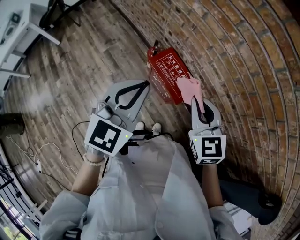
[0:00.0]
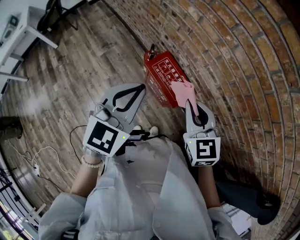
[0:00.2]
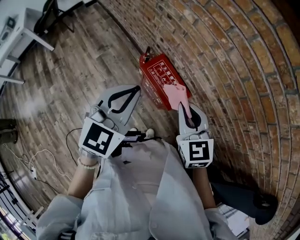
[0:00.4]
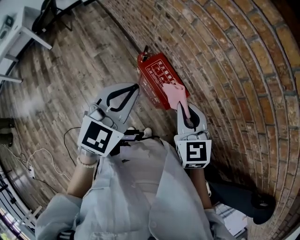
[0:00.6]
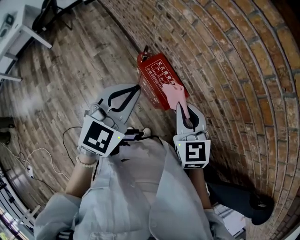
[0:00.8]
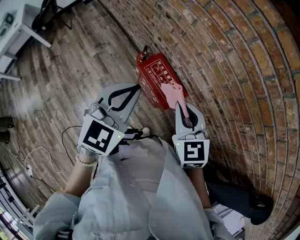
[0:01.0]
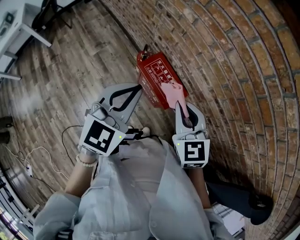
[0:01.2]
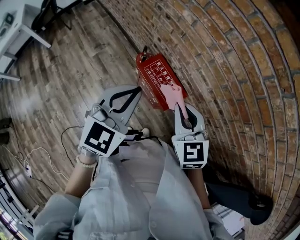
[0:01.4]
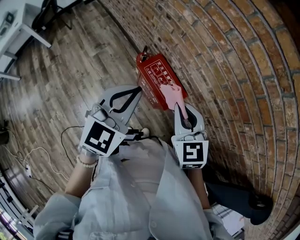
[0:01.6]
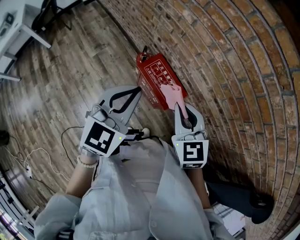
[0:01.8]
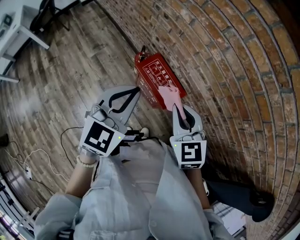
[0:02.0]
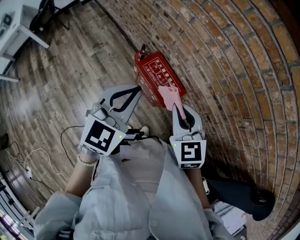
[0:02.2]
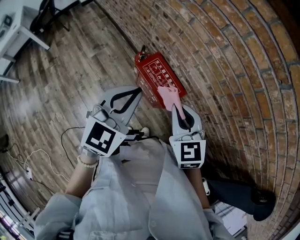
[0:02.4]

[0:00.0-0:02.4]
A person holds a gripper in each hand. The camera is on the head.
0:00.0 to 0:02.4: The grippers stay close to where they were, moving slightly.

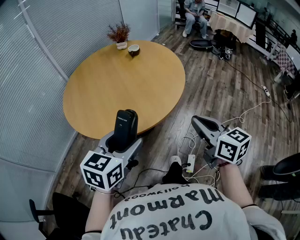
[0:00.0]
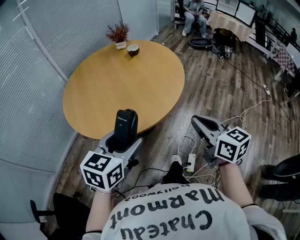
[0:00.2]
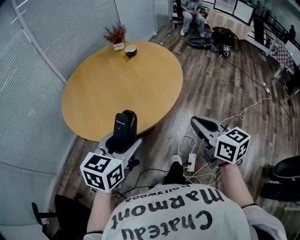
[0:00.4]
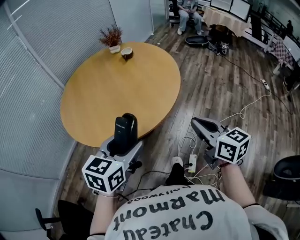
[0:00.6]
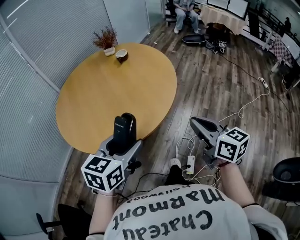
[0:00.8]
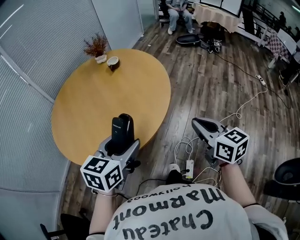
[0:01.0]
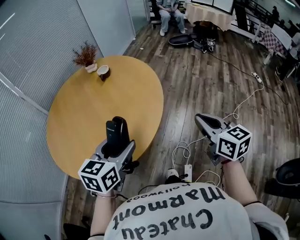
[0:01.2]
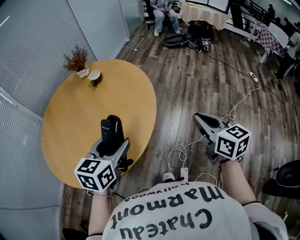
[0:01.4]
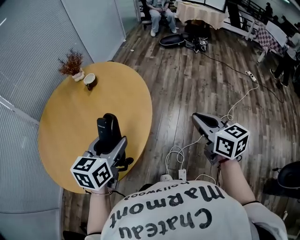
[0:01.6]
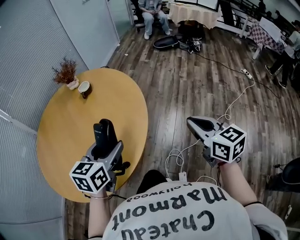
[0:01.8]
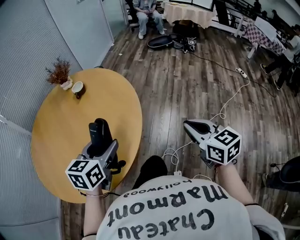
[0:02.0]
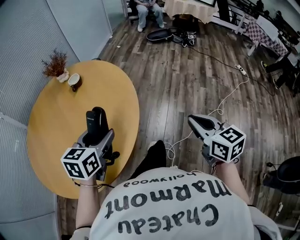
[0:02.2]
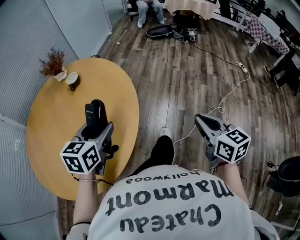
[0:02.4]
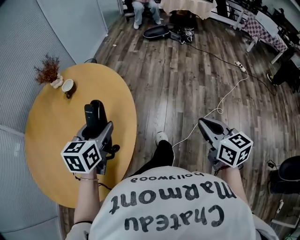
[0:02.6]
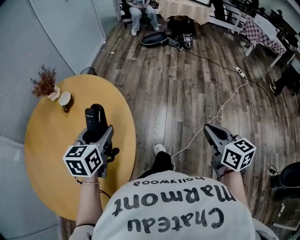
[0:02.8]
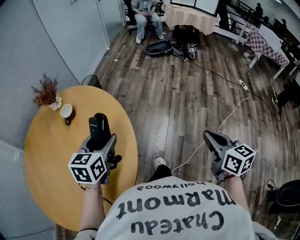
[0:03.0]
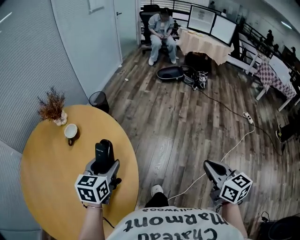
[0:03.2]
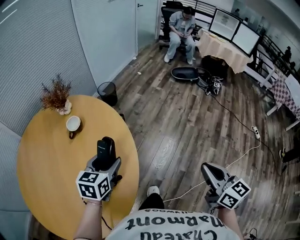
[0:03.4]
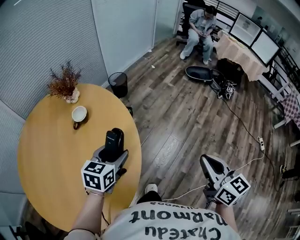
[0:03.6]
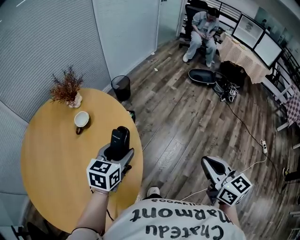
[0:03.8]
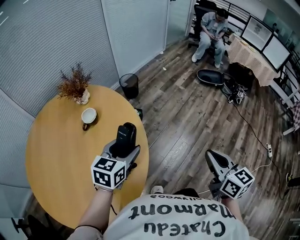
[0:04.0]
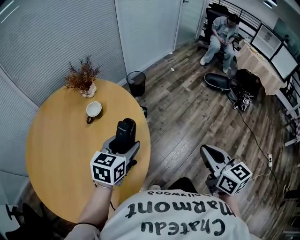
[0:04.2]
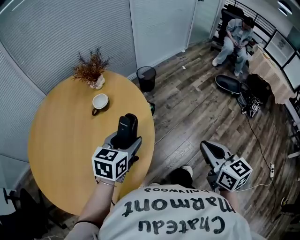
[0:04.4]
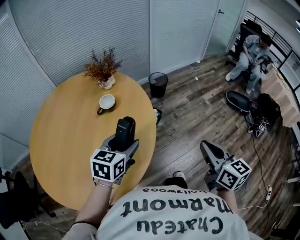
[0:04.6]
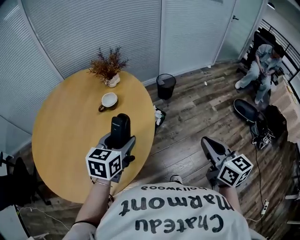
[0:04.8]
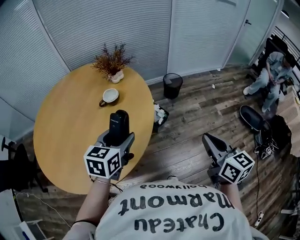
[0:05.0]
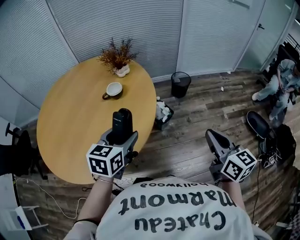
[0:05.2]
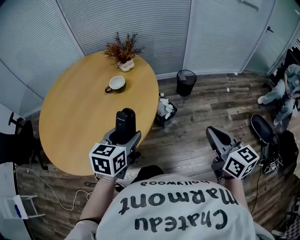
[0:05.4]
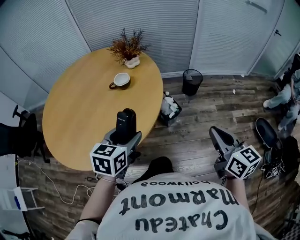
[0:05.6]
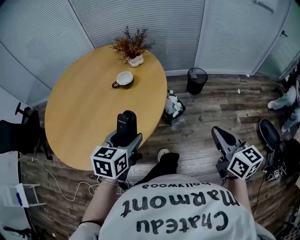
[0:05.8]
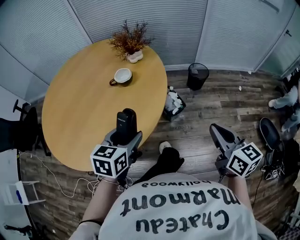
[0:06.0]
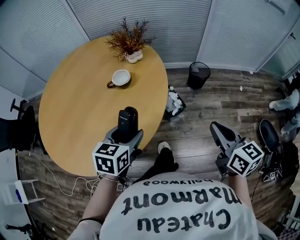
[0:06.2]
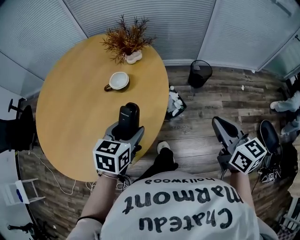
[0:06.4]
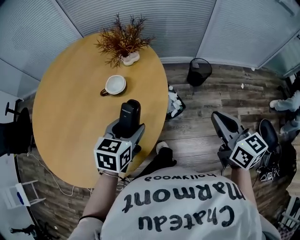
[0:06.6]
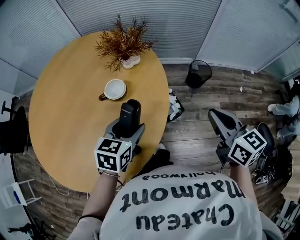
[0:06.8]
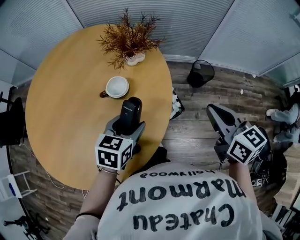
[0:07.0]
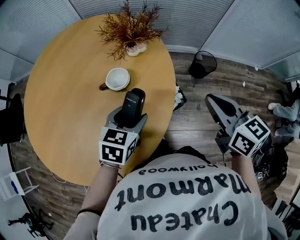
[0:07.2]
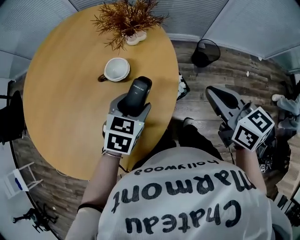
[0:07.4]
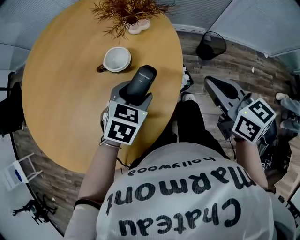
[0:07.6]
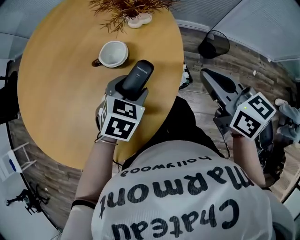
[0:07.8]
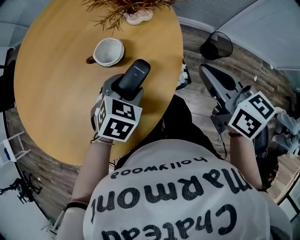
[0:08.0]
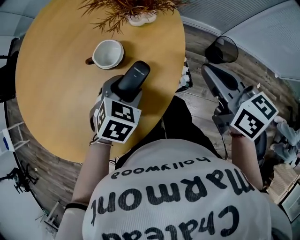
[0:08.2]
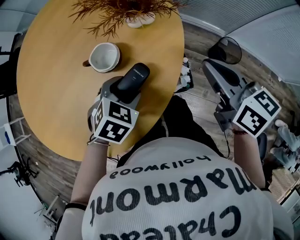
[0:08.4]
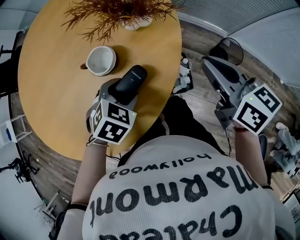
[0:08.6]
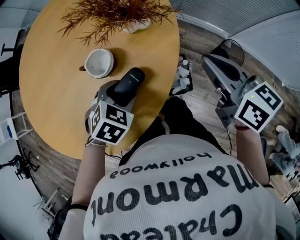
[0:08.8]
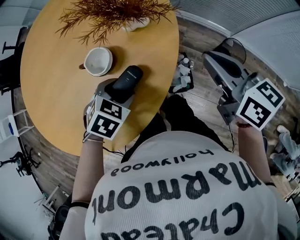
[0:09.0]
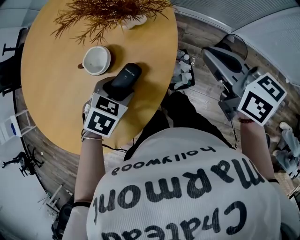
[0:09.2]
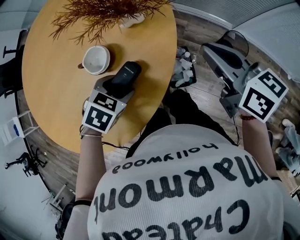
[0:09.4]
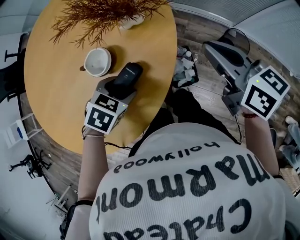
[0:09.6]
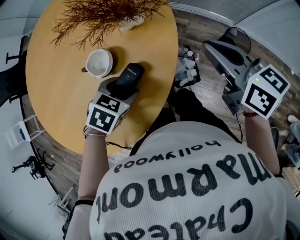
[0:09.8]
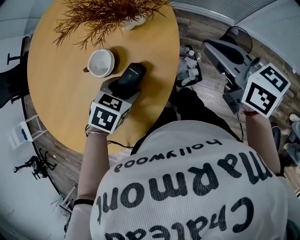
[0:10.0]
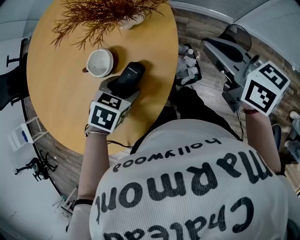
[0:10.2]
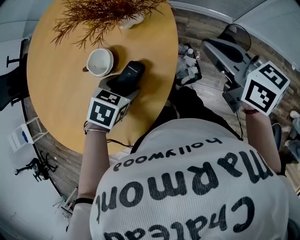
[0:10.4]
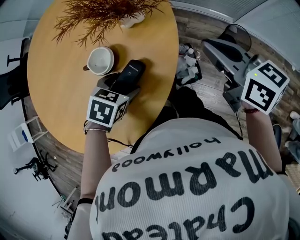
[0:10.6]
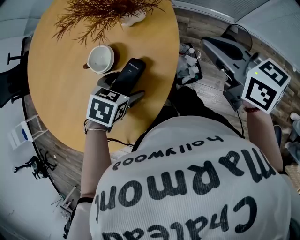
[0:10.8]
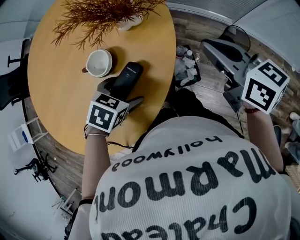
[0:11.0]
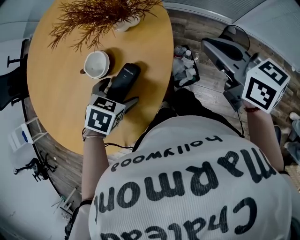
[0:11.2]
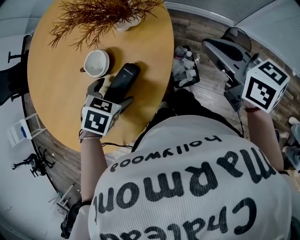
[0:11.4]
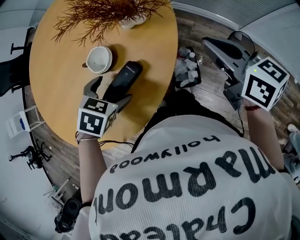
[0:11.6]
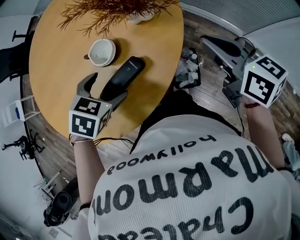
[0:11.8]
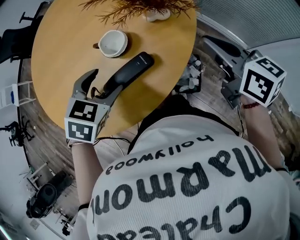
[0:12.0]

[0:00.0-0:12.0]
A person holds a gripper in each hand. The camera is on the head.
0:00.0 to 0:01.6: Both grippers move forward and to the right, approximately 30 cm.
0:01.6 to 0:03.0: The left gripper travels forward by about 25 cm. The right gripper moves forward and to the right, approximately 20 cm.
0:03.0 to 0:04.4: The right gripper shifts by some 30 cm, and changes its angle by some 40 degrees. The left gripper moves about 15 cm, and changes its angle by approximately 30 degrees.
0:04.4 to 0:06.0: The right gripper shifts by roughly 25 cm, and swivels roughly 40 degrees. The left gripper changes its angle by about 40 degrees.
0:06.0 to 0:07.6: The left gripper travels forward and downward by roughly 20 cm, and swivels some 20 degrees, while the right gripper travels forward by some 25 cm.
0:07.6 to 0:09.0: The right gripper travels forward and to the right by some 15 cm. Meanwhile the left gripper heads downward, covering about 5 cm, and changes its angle by approximately 20 degrees.
0:09.0 to 0:10.4: The grippers move only a little.
0:10.4 to 0:12.0: The right gripper changes place by approximately 5 cm; the left gripper shifts some 10 cm upward, and changes its angle by approximately 30 degrees.

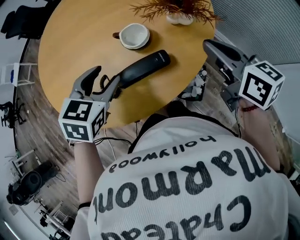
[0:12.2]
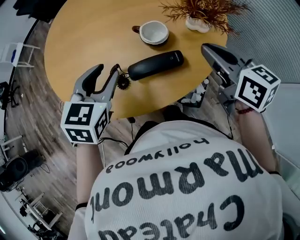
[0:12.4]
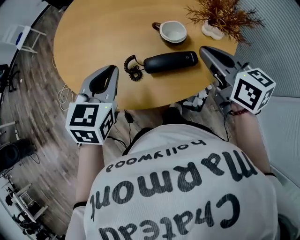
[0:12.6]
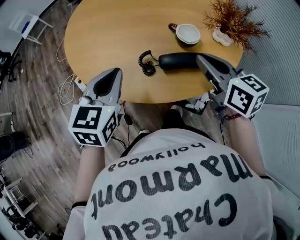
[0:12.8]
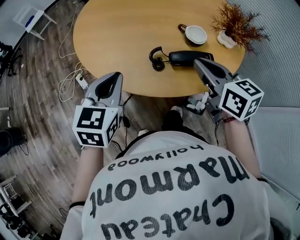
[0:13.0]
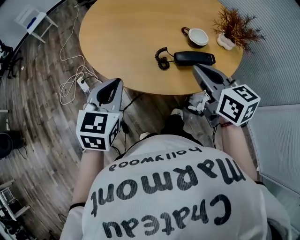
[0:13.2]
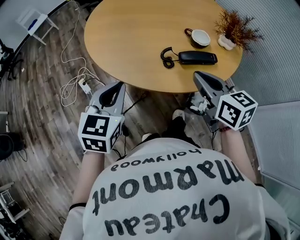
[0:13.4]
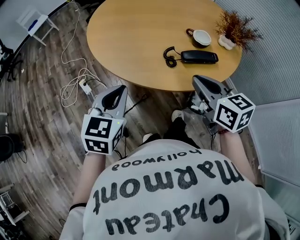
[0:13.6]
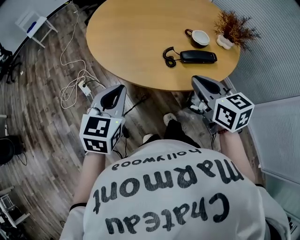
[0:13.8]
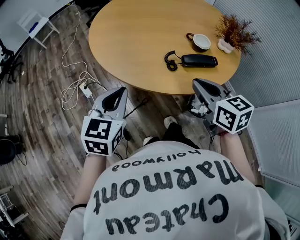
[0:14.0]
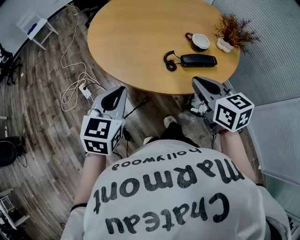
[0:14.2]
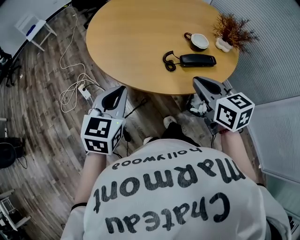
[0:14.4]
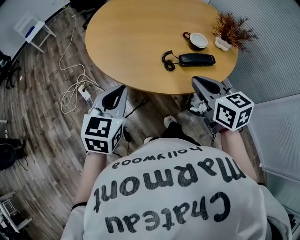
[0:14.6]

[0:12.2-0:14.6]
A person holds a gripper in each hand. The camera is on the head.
0:12.2 to 0:13.4: The right gripper travels to the left by some 30 cm. The left gripper travels to the left and backward by roughly 30 cm, turns by roughly 30 degrees, and closes up.
0:13.4 to 0:14.6: There are only small adjustments of the grippers.

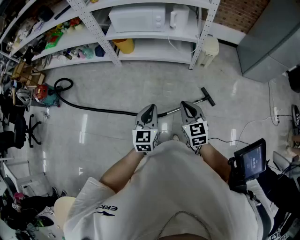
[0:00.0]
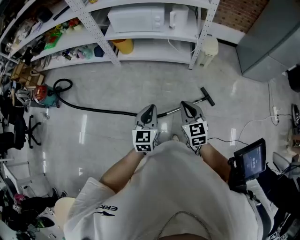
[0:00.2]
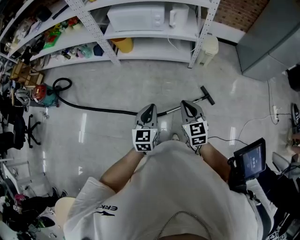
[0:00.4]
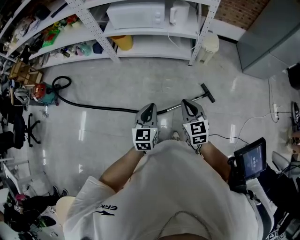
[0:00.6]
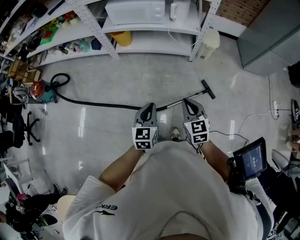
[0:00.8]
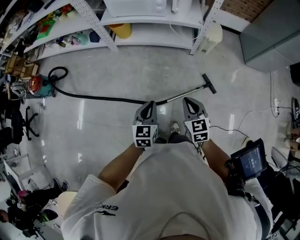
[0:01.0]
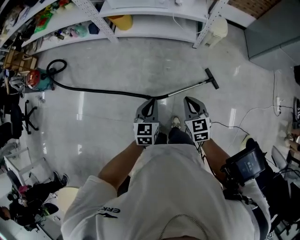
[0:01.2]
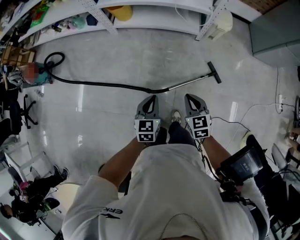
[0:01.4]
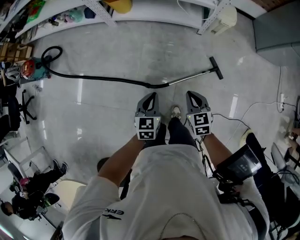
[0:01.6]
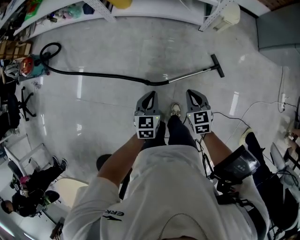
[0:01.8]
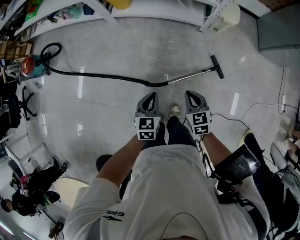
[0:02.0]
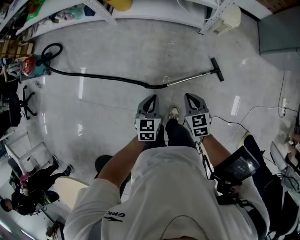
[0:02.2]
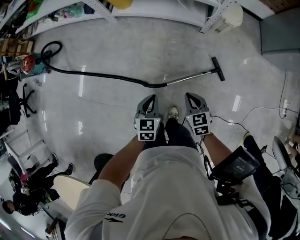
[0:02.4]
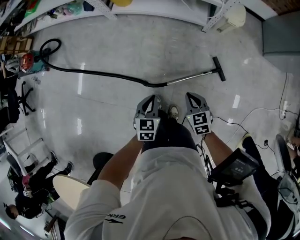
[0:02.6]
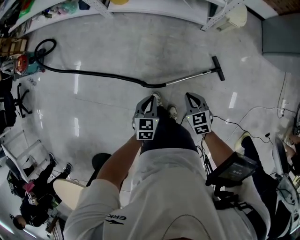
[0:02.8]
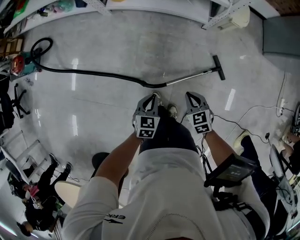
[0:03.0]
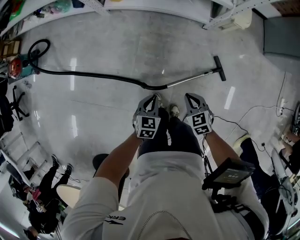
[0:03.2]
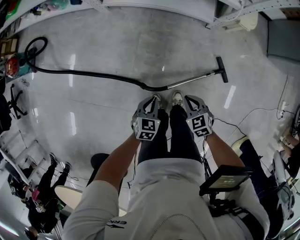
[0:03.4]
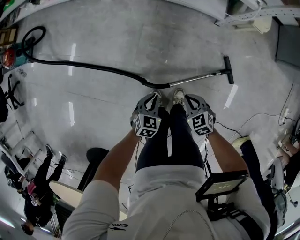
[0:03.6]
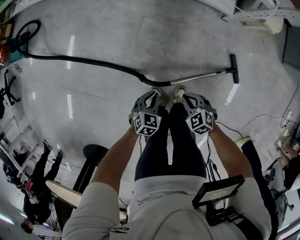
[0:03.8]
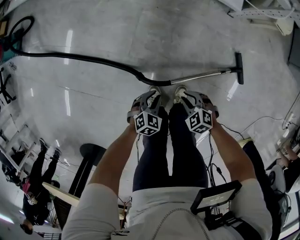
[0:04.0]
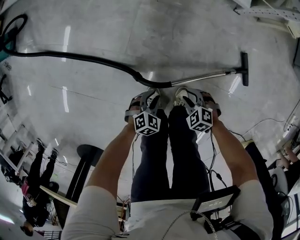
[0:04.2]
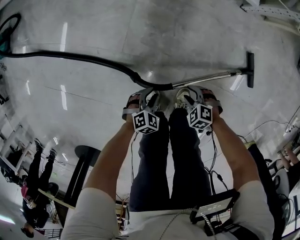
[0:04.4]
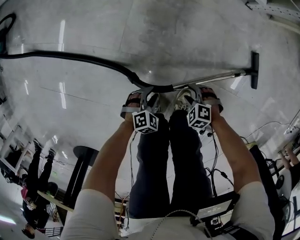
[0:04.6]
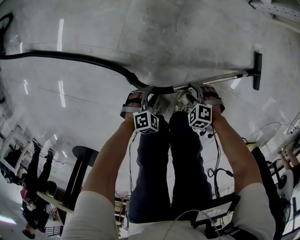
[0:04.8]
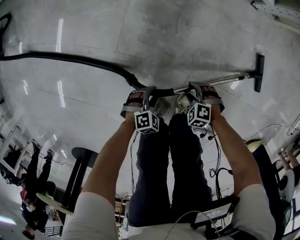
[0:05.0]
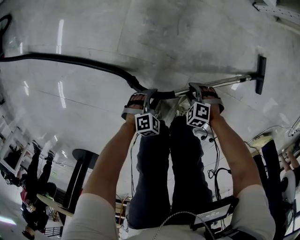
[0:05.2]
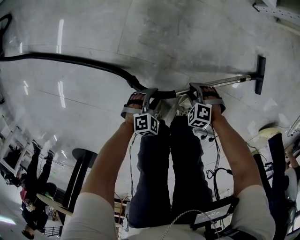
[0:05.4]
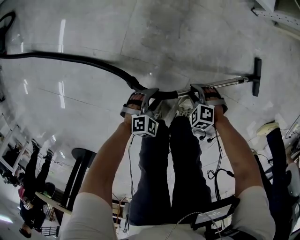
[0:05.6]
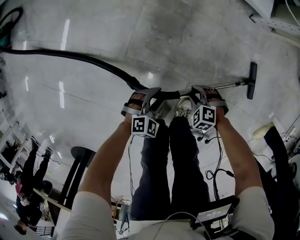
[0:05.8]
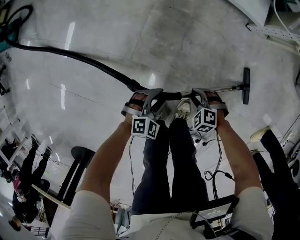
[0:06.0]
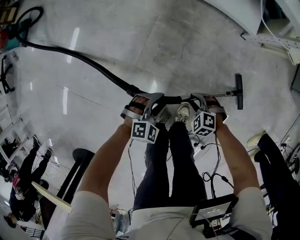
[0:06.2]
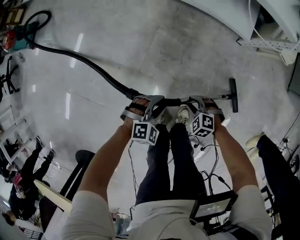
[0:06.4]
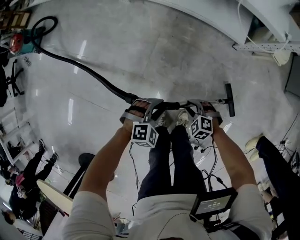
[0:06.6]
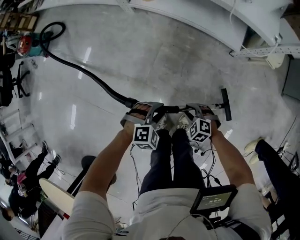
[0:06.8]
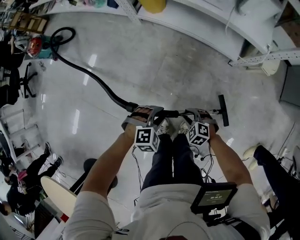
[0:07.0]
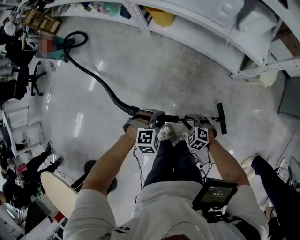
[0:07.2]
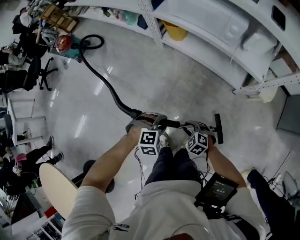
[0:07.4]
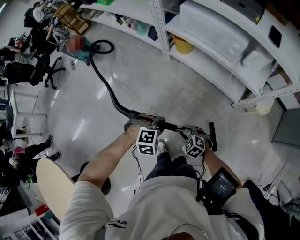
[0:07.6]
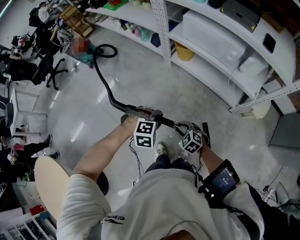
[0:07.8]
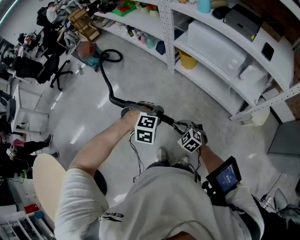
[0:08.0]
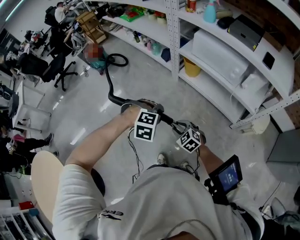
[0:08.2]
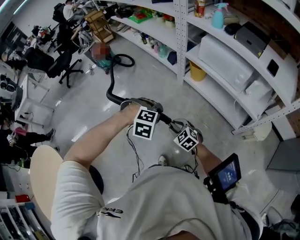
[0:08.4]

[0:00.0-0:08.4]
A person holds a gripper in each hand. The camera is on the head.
0:00.0 to 0:01.4: Both grippers travel together downward, about 15 cm.
0:01.4 to 0:02.8: The right gripper moves downward and forward, approximately 15 cm. Meanwhile the left gripper shifts roughly 15 cm downward.
0:02.8 to 0:04.2: Both grippers move downward, roughly 40 cm. The left gripper turns by roughly 40 degrees, and opens up; the right gripper swivels roughly 50 degrees, and opens its fingers.
0:04.2 to 0:05.6: Both grippers travel together downward, some 10 cm.
0:05.6 to 0:07.0: Both grippers travel together upward, roughly 40 cm.
0:07.0 to 0:08.4: The grippers both shift upward and to the left by approximately 35 cm. The right gripper changes its angle by some 20 degrees.
